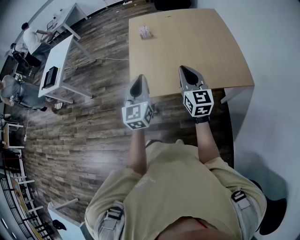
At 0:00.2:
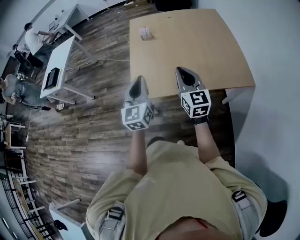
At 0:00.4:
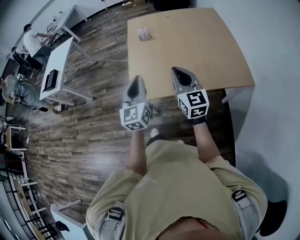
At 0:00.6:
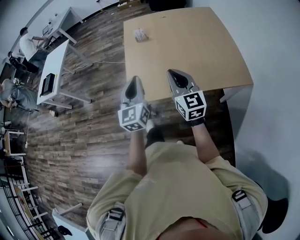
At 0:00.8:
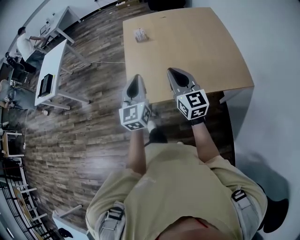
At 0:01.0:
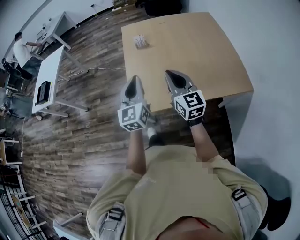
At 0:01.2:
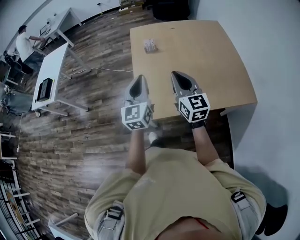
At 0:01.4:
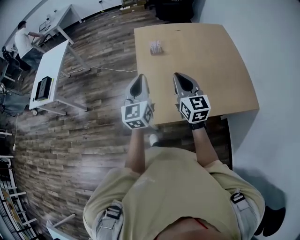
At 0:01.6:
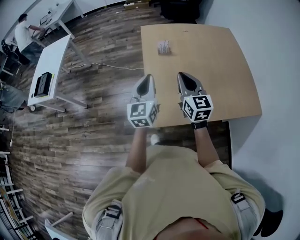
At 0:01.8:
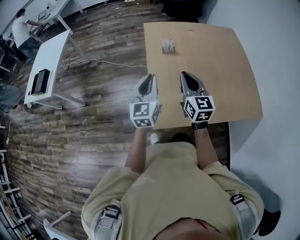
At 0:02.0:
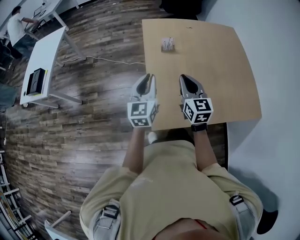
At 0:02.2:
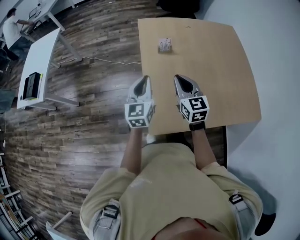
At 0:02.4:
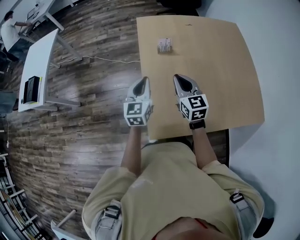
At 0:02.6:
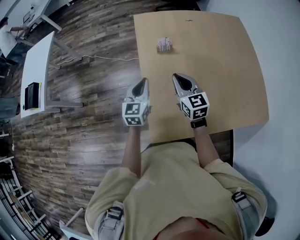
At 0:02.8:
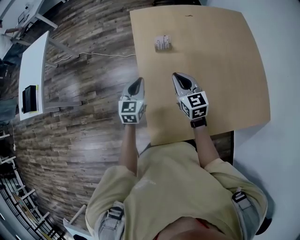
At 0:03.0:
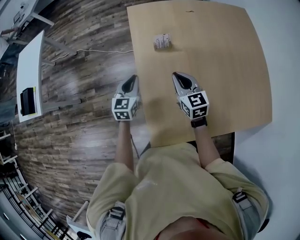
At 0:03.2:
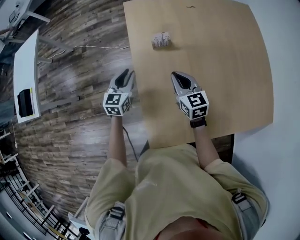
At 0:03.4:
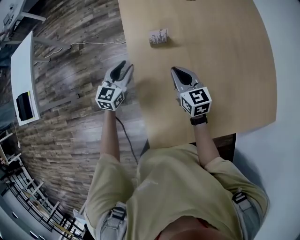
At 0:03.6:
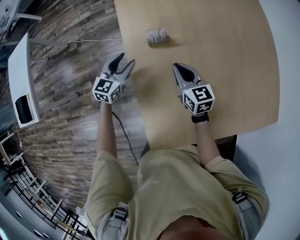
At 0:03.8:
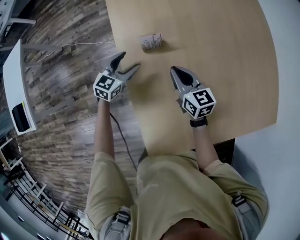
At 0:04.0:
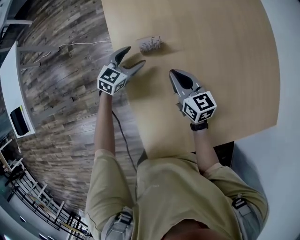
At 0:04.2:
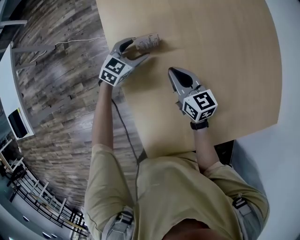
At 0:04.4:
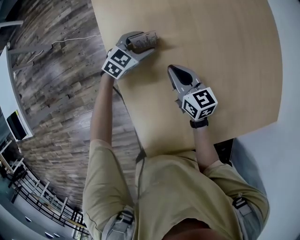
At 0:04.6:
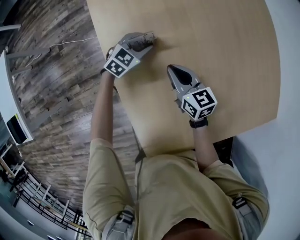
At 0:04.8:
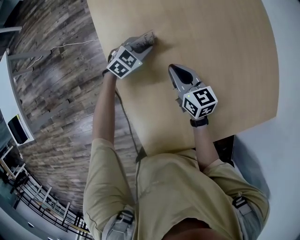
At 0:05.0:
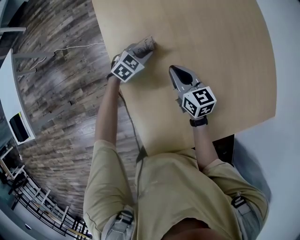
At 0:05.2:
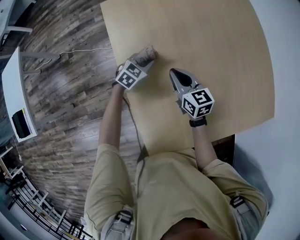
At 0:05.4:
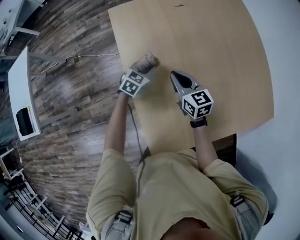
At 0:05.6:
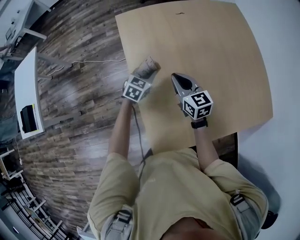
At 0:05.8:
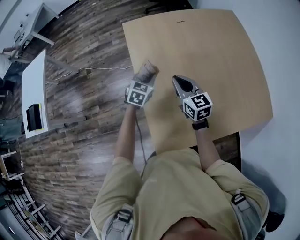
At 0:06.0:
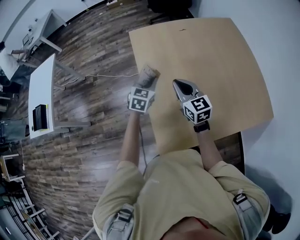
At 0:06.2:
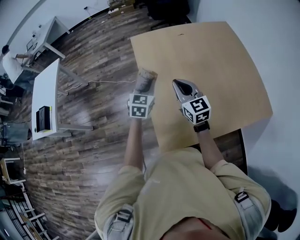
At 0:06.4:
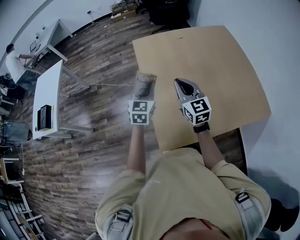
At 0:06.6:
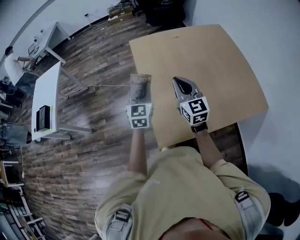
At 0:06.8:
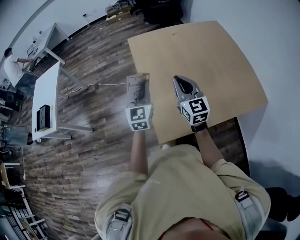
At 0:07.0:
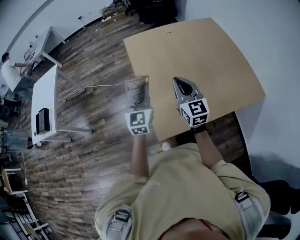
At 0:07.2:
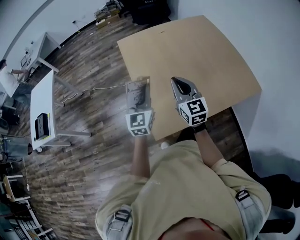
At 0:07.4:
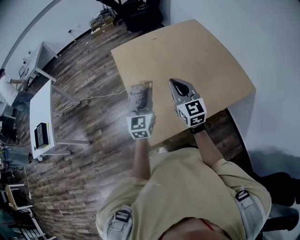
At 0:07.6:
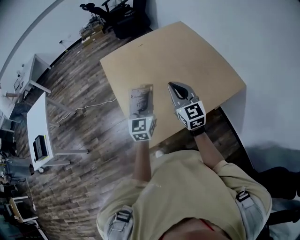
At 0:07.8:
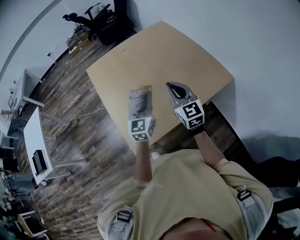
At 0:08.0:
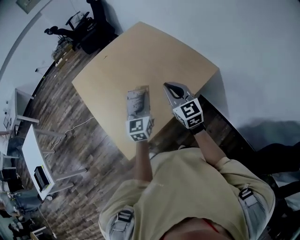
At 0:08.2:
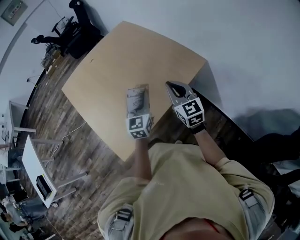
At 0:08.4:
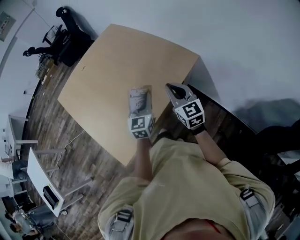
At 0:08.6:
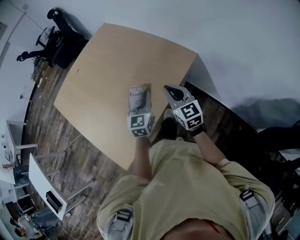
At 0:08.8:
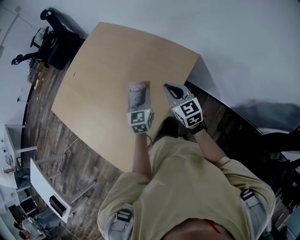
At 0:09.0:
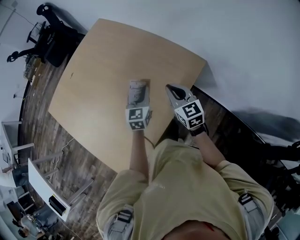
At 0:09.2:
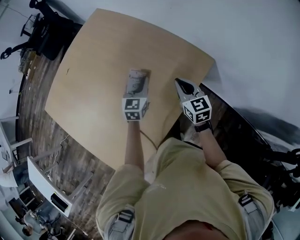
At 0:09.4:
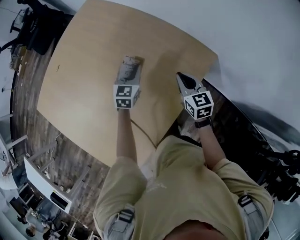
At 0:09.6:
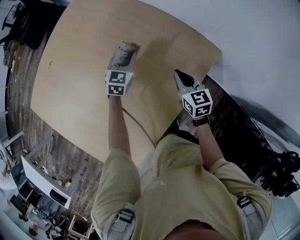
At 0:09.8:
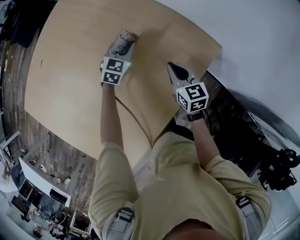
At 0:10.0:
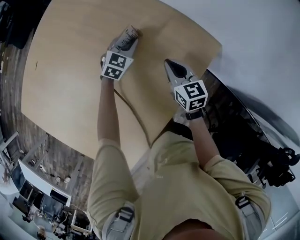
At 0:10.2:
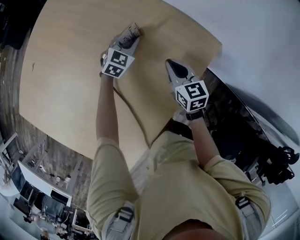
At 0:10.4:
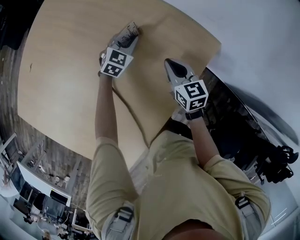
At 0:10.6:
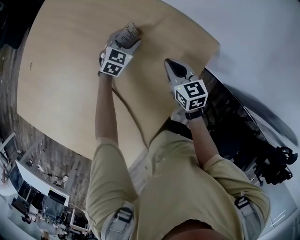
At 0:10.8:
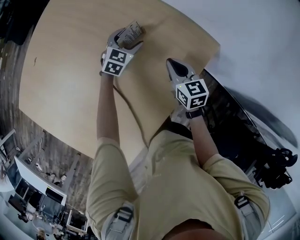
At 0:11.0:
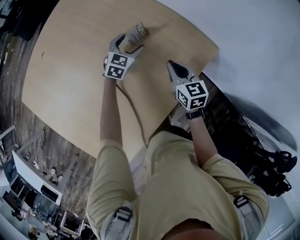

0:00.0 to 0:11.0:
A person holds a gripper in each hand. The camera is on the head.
0:00.0 to 0:01.6: Both grippers travel together forward and to the left, some 30 cm.
0:01.6 to 0:03.2: The grippers both shift forward and downward by approximately 40 cm. The left gripper swivels roughly 30 degrees, while the right gripper rotates some 20 degrees.
0:03.2 to 0:04.8: The left gripper moves forward, downward and to the right, some 30 cm, turns by some 50 degrees, and opens, then closes again. Meanwhile the right gripper moves forward and downward, about 15 cm.
0:04.8 to 0:06.2: Both grippers move upward and backward, some 35 cm. The left gripper turns by roughly 40 degrees. The right gripper swivels about 30 degrees.
0:06.2 to 0:07.8: Both grippers travel together to the right and backward, approximately 30 cm. The right gripper swivels approximately 20 degrees.
0:07.8 to 0:09.4: The right gripper ends up some 40 cm from where it was, and changes its angle by some 40 degrees. Meanwhile the left gripper moves roughly 50 cm, and changes its angle by about 40 degrees.
0:09.4 to 0:11.0: The left gripper moves downward and forward, about 10 cm, and opens its fingers; the right gripper moves downward, about 5 cm.

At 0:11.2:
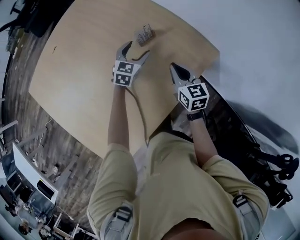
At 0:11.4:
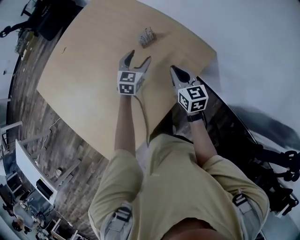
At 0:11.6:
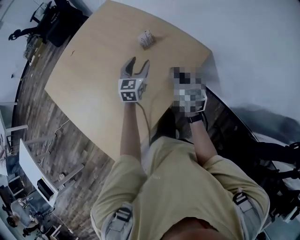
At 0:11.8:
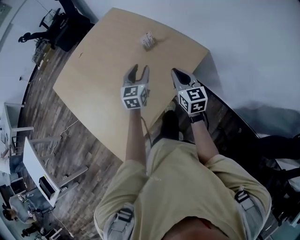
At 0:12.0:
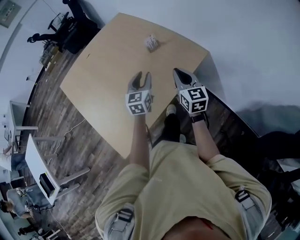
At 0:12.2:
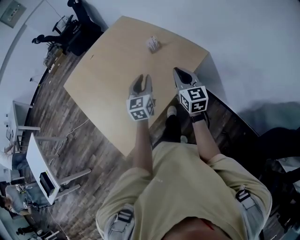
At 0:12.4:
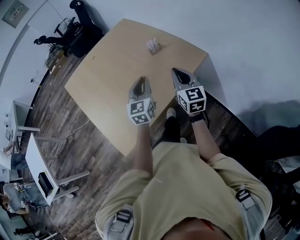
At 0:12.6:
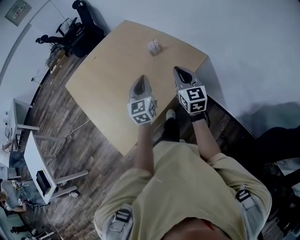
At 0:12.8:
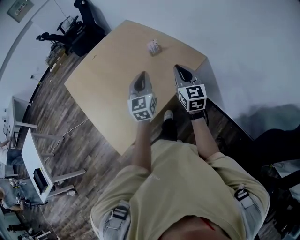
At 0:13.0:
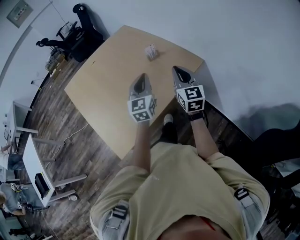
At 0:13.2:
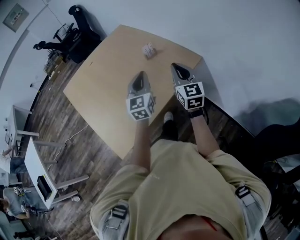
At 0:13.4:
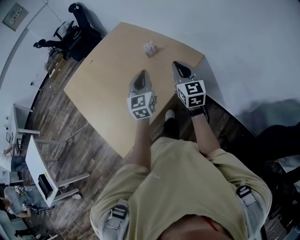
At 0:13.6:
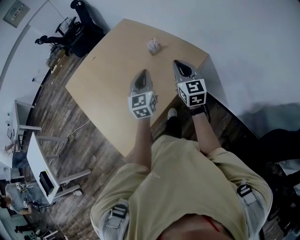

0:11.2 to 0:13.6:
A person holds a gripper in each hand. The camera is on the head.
0:11.2 to 0:12.4: Both grippers travel together backward and upward, some 40 cm. The right gripper changes its angle by some 20 degrees. Meanwhile the left gripper changes its angle by roughly 30 degrees, and closes up.
0:12.4 to 0:13.6: There are only small adjustments of the grippers.

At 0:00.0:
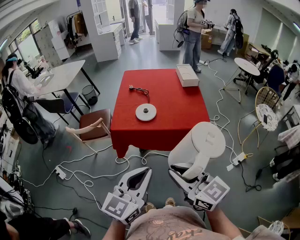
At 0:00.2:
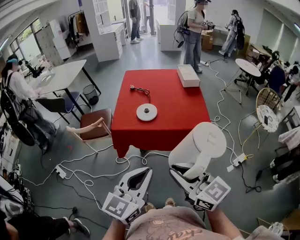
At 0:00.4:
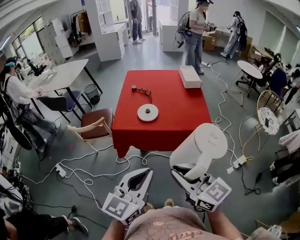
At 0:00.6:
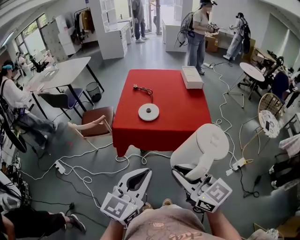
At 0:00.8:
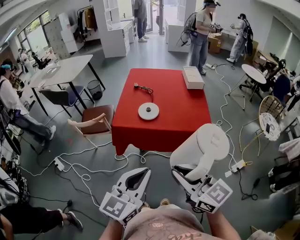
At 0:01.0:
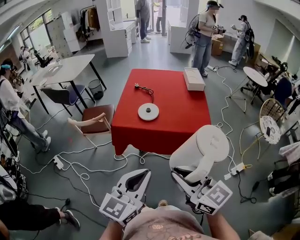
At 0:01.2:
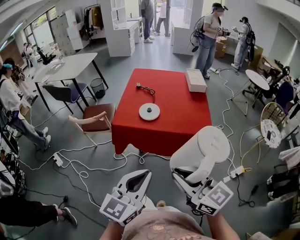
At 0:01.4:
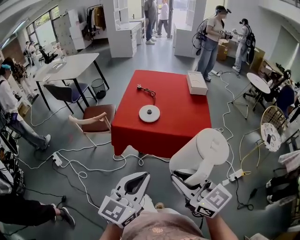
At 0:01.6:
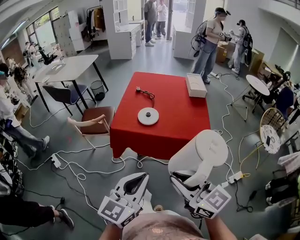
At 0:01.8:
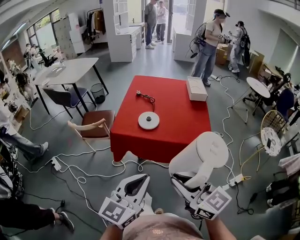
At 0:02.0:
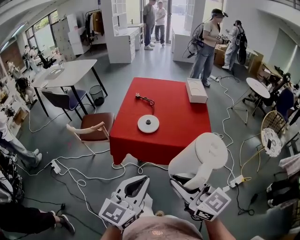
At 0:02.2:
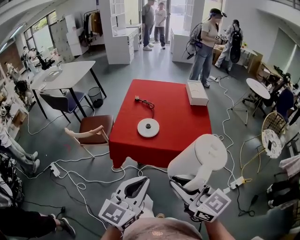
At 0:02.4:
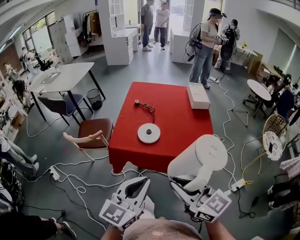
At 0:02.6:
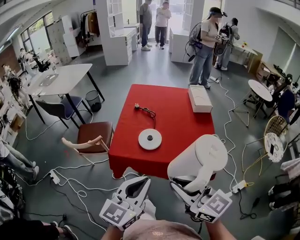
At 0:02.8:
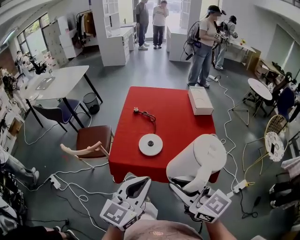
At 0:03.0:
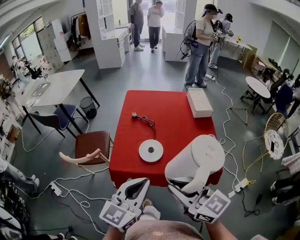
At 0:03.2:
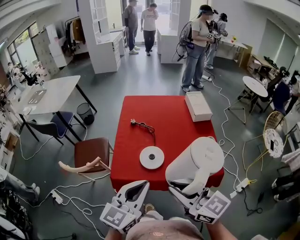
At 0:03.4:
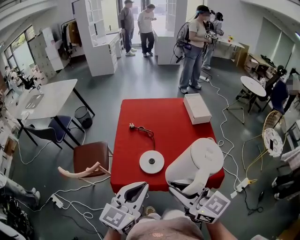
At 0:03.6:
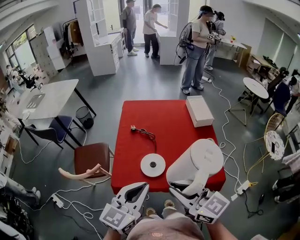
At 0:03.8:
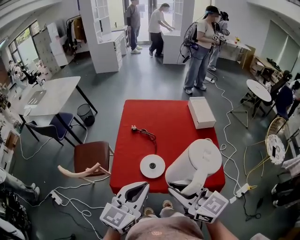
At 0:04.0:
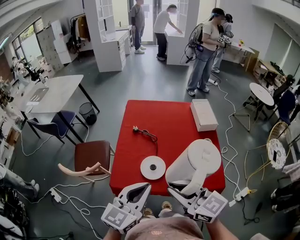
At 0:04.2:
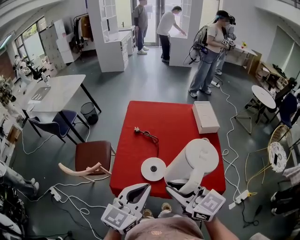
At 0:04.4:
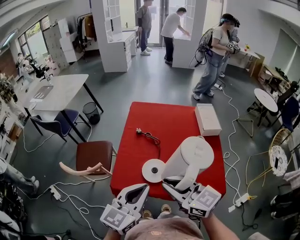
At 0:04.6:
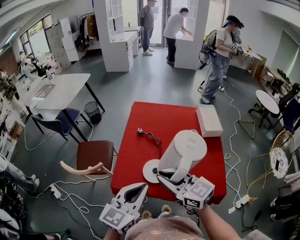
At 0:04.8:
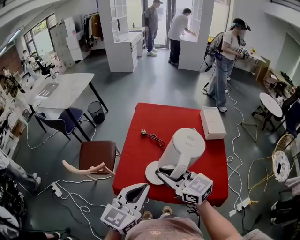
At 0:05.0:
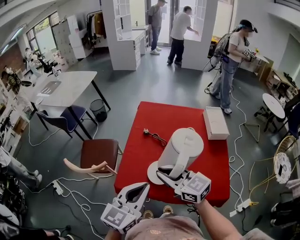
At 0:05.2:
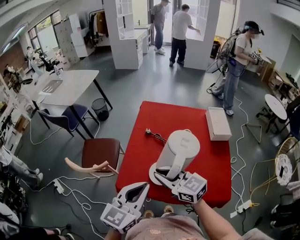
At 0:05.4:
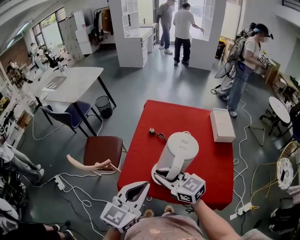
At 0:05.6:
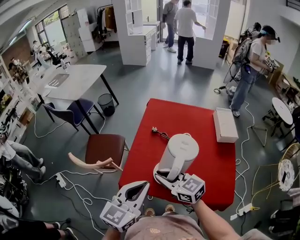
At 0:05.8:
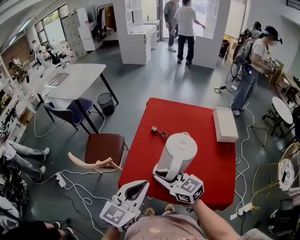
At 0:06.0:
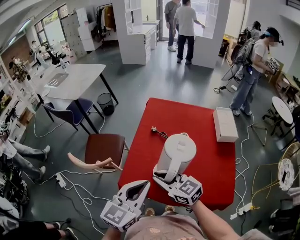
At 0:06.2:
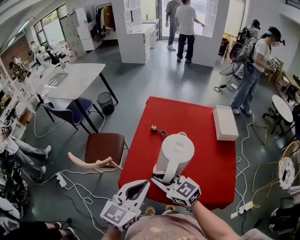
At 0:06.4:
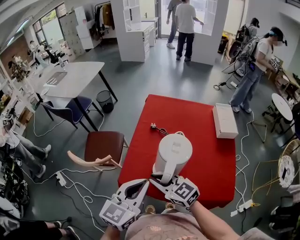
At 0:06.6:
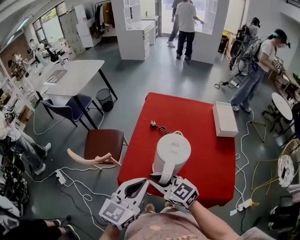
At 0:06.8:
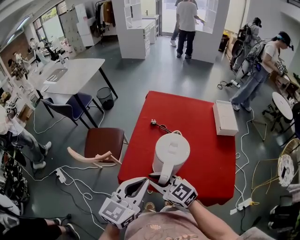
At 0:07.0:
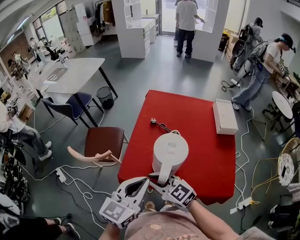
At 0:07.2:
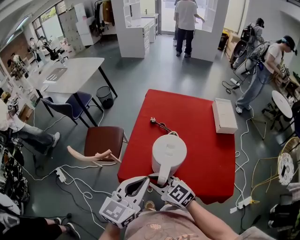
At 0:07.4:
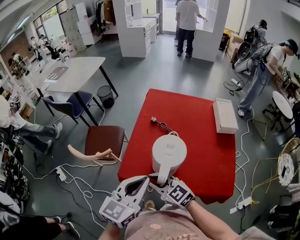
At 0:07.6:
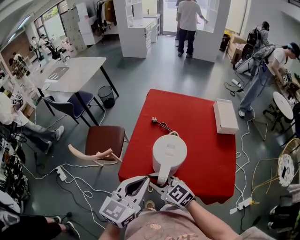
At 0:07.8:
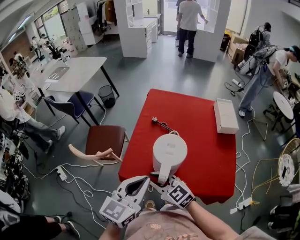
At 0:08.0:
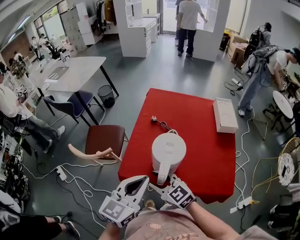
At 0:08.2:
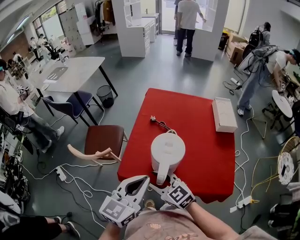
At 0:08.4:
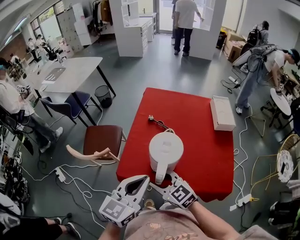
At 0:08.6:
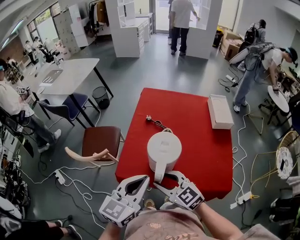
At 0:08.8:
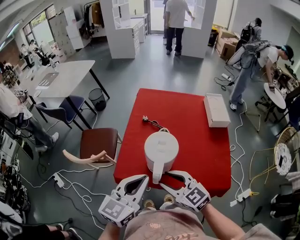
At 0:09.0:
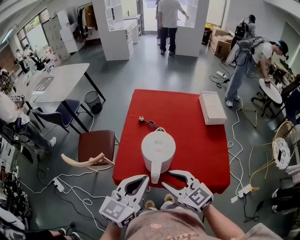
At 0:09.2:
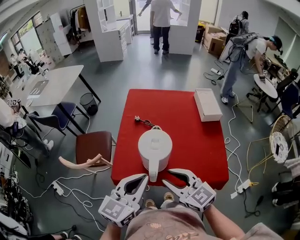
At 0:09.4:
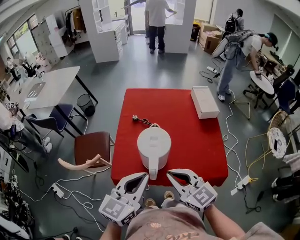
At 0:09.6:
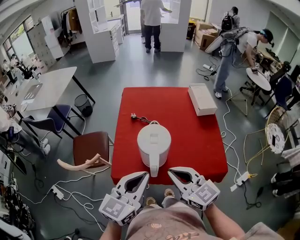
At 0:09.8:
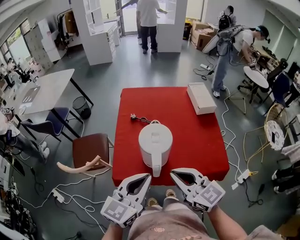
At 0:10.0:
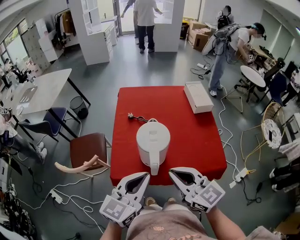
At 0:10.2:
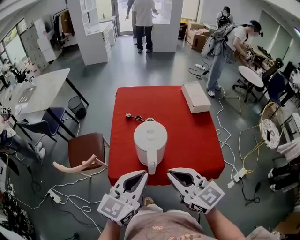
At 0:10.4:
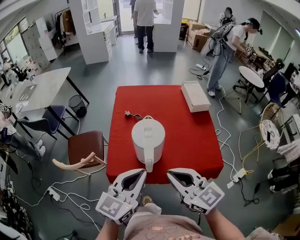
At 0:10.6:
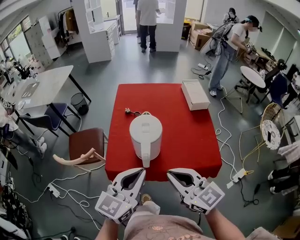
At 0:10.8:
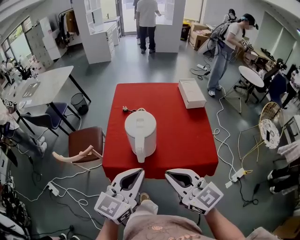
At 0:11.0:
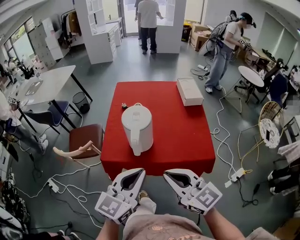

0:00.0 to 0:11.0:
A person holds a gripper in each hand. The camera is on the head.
0:00.0 to 0:01.6: There are only small adjustments of the grippers.
0:01.6 to 0:03.2: The two grippers go about 25 cm forward.
0:03.2 to 0:04.8: The left gripper shifts some 10 cm forward. Meanwhile the right gripper travels forward by about 15 cm.
0:04.8 to 0:06.2: The right gripper moves downward and to the left, about 10 cm.
0:06.2 to 0:07.8: The right gripper changes place by approximately 5 cm.
0:07.8 to 0:09.4: The right gripper travels to the right and upward by approximately 15 cm, turns by roughly 20 degrees, and closes up.
0:09.4 to 0:11.0: The left gripper heads backward and to the right, covering approximately 10 cm, while the right gripper travels backward by roughly 15 cm.
